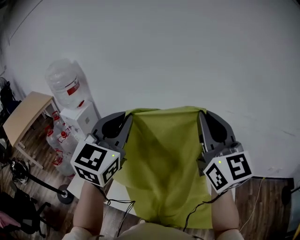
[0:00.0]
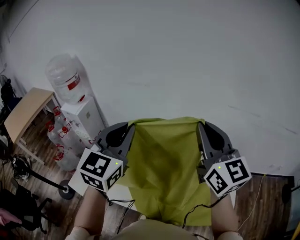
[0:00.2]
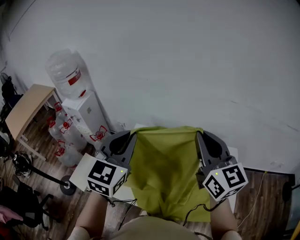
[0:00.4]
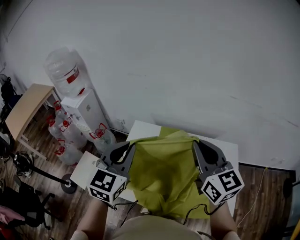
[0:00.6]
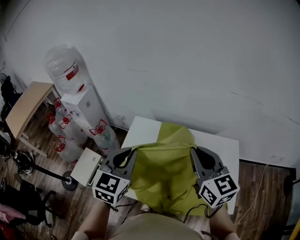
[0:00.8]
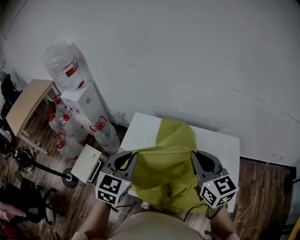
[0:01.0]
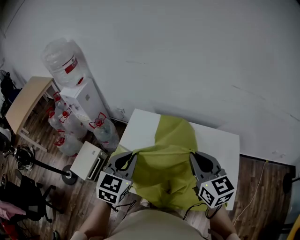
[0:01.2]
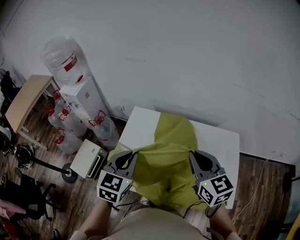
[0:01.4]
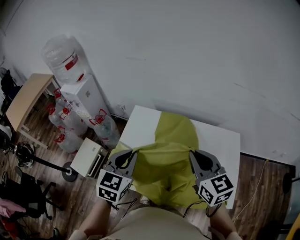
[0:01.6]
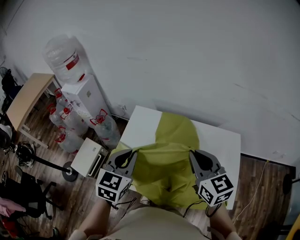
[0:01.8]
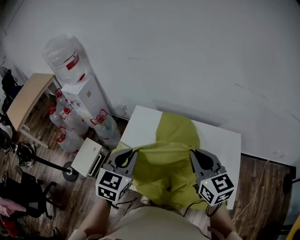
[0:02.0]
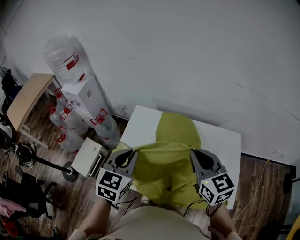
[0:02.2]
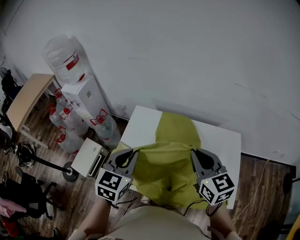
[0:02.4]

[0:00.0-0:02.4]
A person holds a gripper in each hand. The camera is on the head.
0:00.0 to 0:01.2: Both grippers move downward, some 25 cm. The right gripper swivels approximately 30 degrees. The left gripper changes its angle by about 30 degrees.
0:01.2 to 0:02.4: Both grippers stay put.

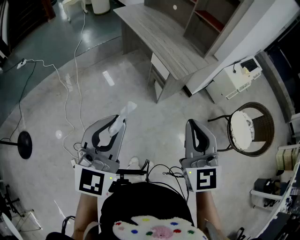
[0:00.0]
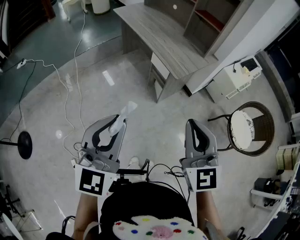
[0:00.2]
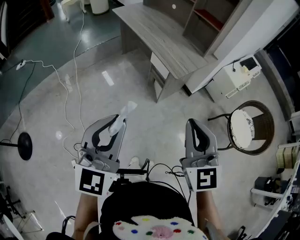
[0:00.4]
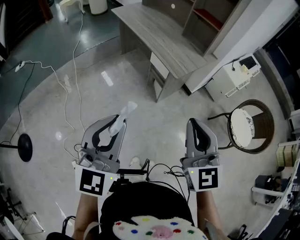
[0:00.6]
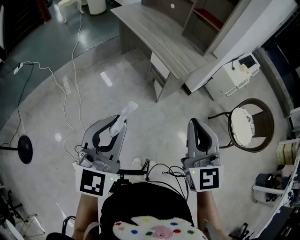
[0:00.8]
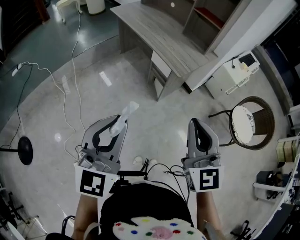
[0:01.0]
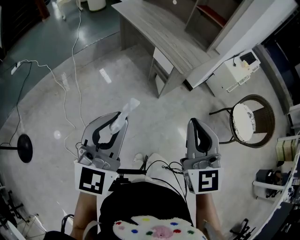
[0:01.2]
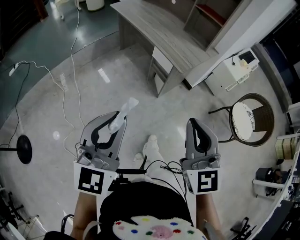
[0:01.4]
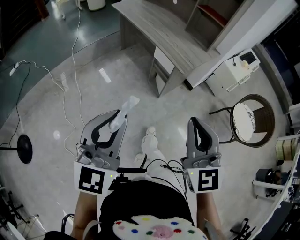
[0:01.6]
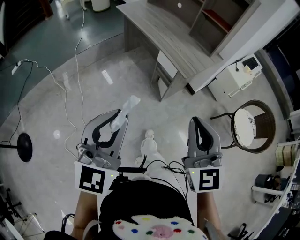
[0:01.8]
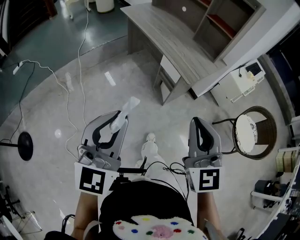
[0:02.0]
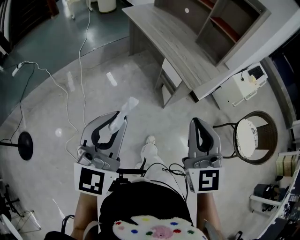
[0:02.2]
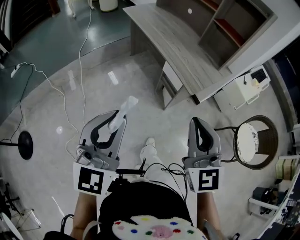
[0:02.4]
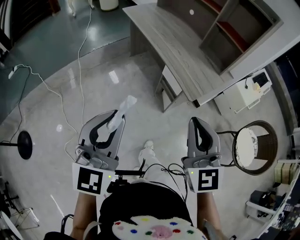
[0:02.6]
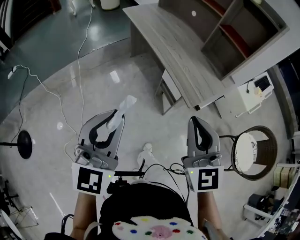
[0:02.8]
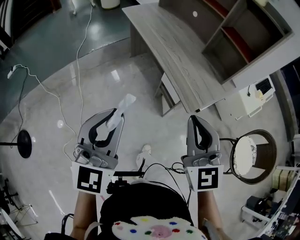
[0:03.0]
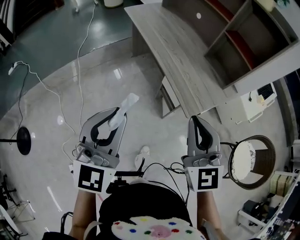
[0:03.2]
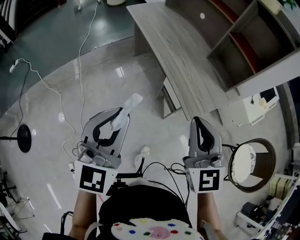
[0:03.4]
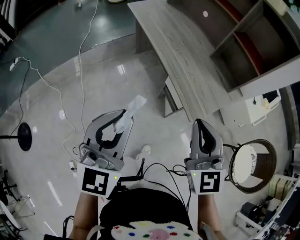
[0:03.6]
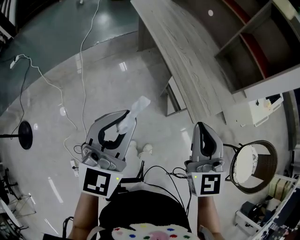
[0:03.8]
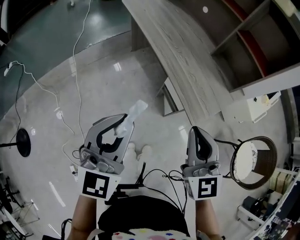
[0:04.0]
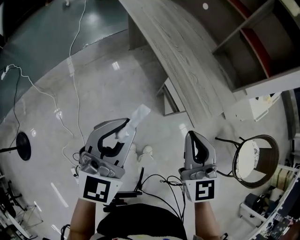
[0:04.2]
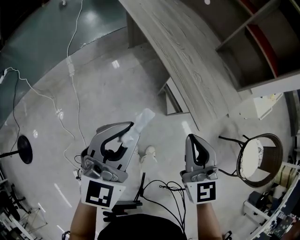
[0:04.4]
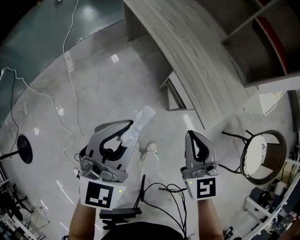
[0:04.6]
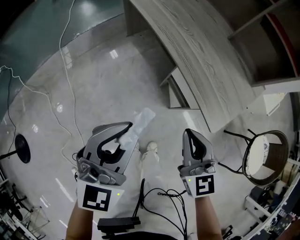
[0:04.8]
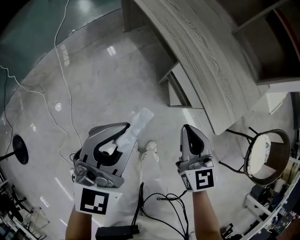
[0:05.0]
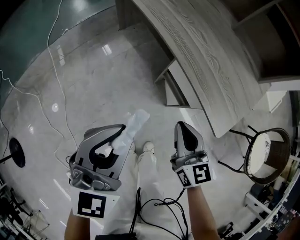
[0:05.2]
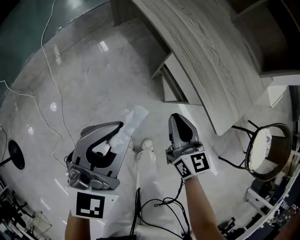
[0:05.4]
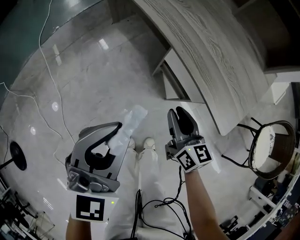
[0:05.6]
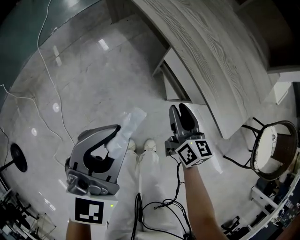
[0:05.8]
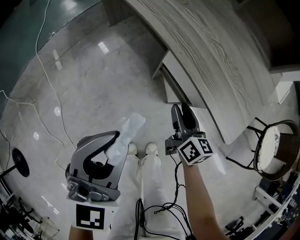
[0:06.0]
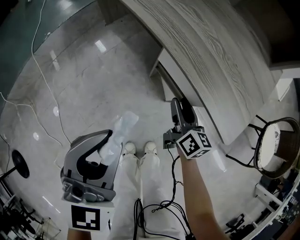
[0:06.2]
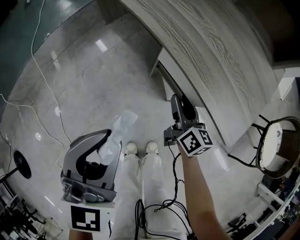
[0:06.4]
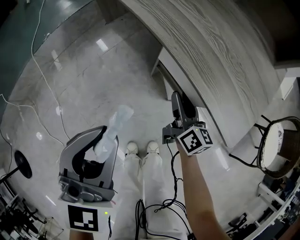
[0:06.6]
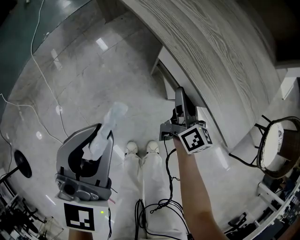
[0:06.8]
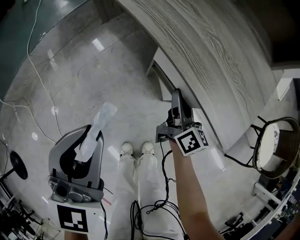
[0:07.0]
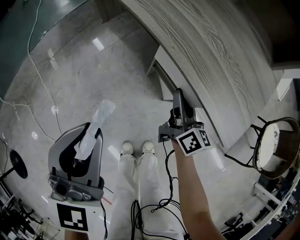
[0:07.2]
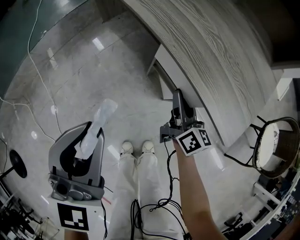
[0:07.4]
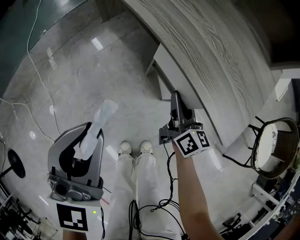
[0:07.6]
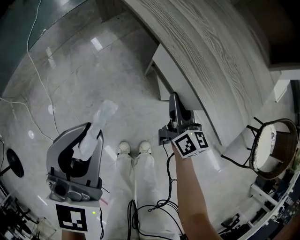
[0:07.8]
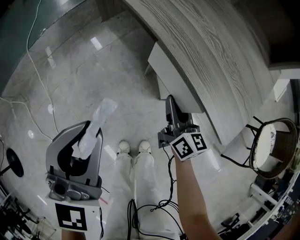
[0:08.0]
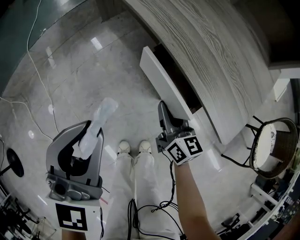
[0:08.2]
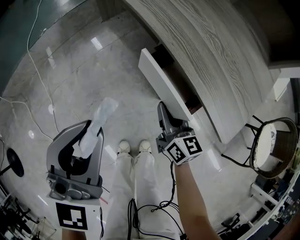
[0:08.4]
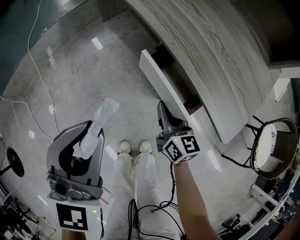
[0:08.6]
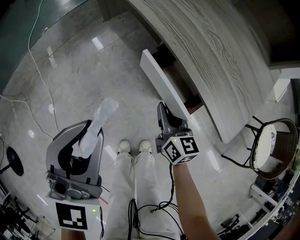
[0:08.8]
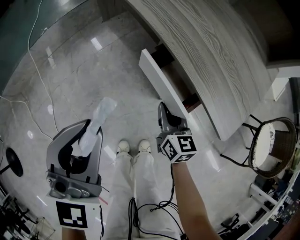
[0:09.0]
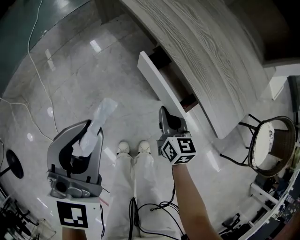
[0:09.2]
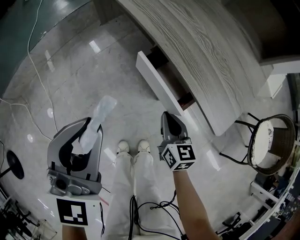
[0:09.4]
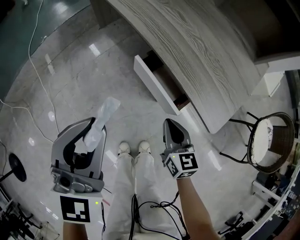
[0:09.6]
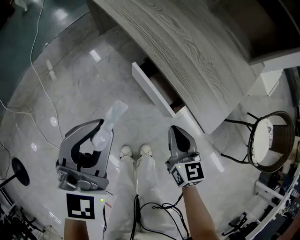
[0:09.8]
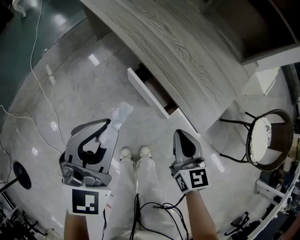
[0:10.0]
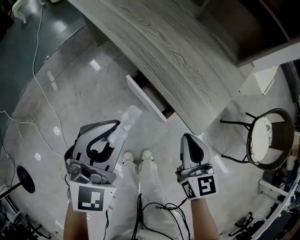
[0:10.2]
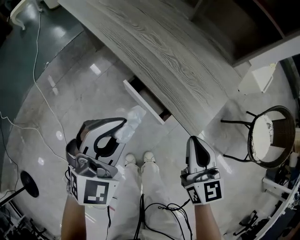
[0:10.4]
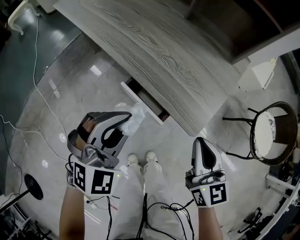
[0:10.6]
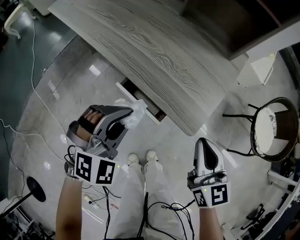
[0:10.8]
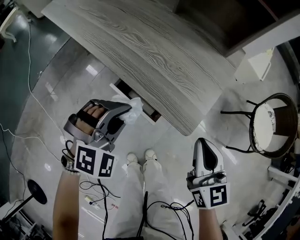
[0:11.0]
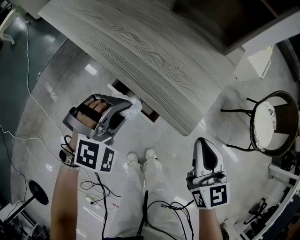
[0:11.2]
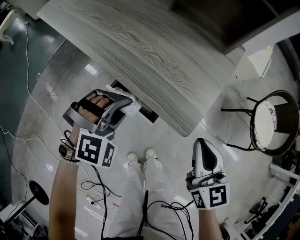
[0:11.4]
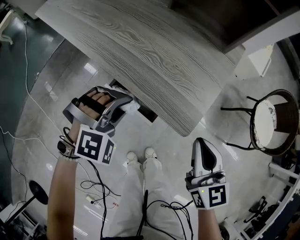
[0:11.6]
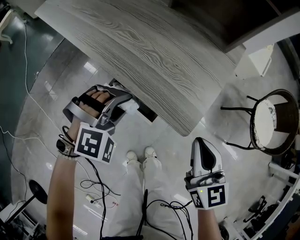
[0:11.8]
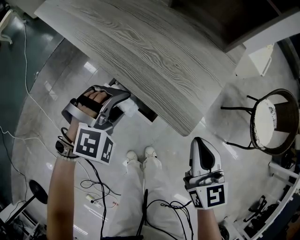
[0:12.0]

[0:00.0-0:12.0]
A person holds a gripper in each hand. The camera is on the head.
0:00.0 to 0:01.6: The grippers both shift to the left by roughly 5 cm.
0:01.6 to 0:03.0: The two grippers go some 25 cm forward.
0:03.0 to 0:04.4: The left gripper shifts about 15 cm forward and downward; the right gripper travels downward and forward by roughly 15 cm.
0:04.4 to 0:06.0: The left gripper heads downward, covering approximately 20 cm. Meanwhile the right gripper is displaced downward by approximately 35 cm, rotates around the line of its fingers by about 40 degrees, clockwise from behind, and opens its fingers.
0:06.0 to 0:07.6: The right gripper closes its fingers.
0:07.6 to 0:09.0: The right gripper shifts some 5 cm backward, and swivels approximately 20 degrees.
0:09.0 to 0:10.4: The left gripper is displaced to the right by about 10 cm, and swivels roughly 30 degrees. The right gripper is displaced upward and to the right by approximately 25 cm.
0:10.4 to 0:12.0: The left gripper moves downward and forward, roughly 15 cm, and swivels approximately 50 degrees.

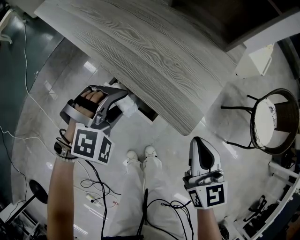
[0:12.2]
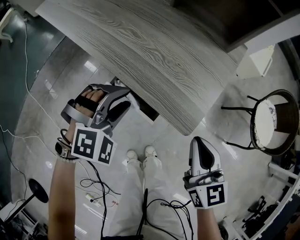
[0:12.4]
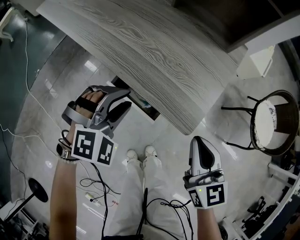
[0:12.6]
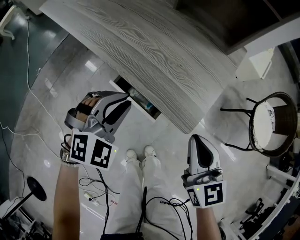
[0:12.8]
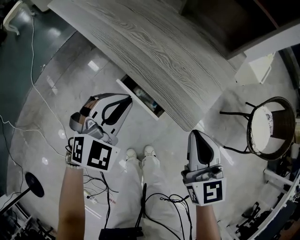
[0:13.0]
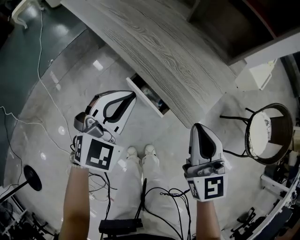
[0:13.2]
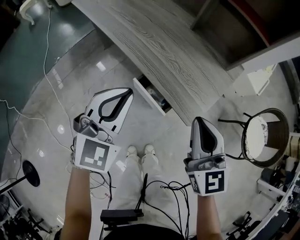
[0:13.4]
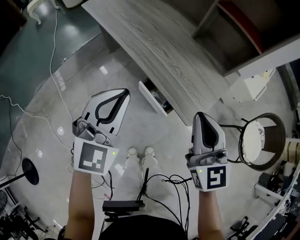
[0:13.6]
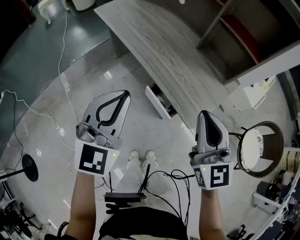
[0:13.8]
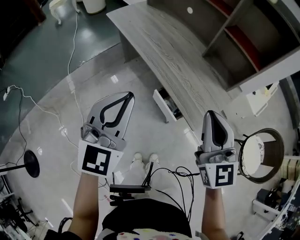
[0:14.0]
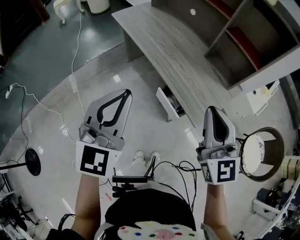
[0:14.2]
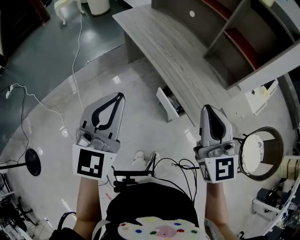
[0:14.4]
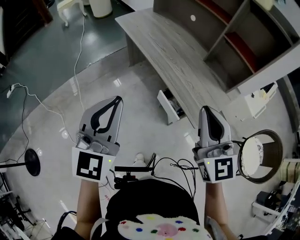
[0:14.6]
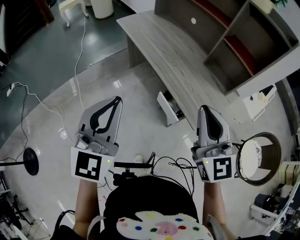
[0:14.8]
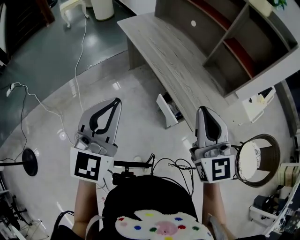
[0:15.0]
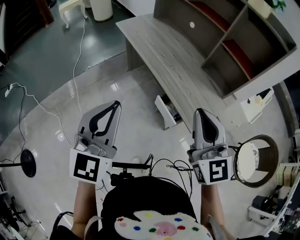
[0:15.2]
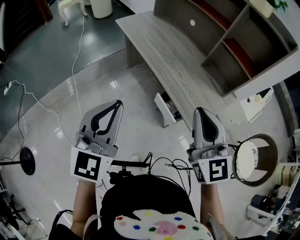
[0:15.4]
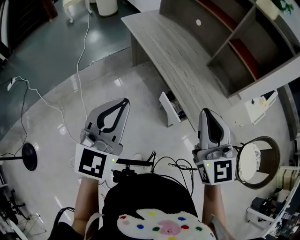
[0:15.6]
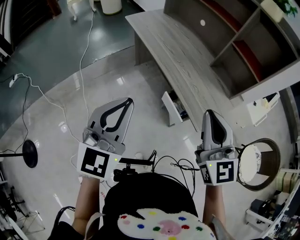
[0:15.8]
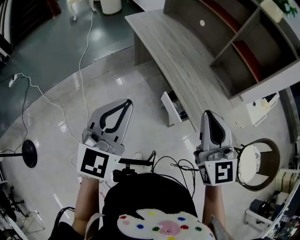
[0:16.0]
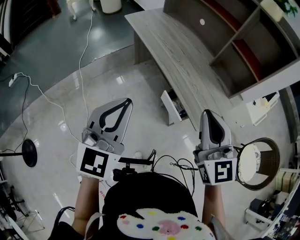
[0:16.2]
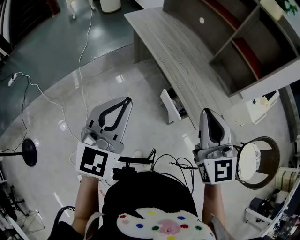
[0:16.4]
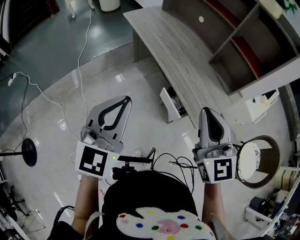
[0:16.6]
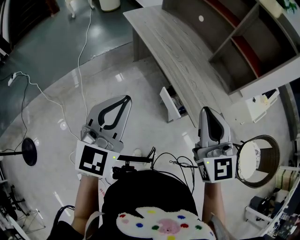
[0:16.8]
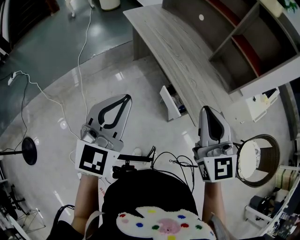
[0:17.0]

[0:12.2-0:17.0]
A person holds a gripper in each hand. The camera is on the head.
0:12.2 to 0:13.8: The left gripper heads upward, covering approximately 30 cm, angles its fingers upward, by approximately 40 degrees, and closes its fingers; the right gripper travels upward and to the left by about 25 cm, and rotates some 30 degrees.
0:13.8 to 0:15.4: The left gripper goes some 15 cm backward, to the left and upward; the right gripper travels upward and to the left by some 10 cm.
0:15.4 to 0:17.0: The grippers stay close to where they were, moving slightly.

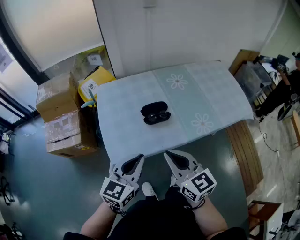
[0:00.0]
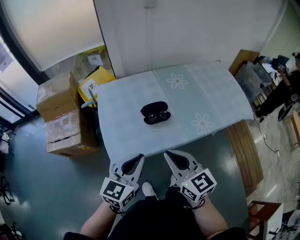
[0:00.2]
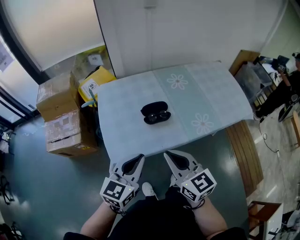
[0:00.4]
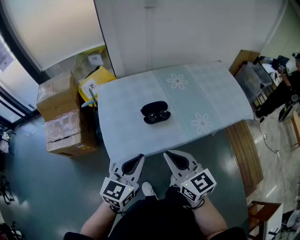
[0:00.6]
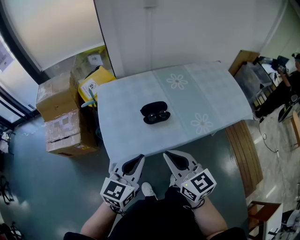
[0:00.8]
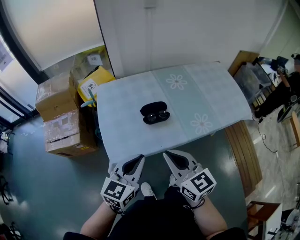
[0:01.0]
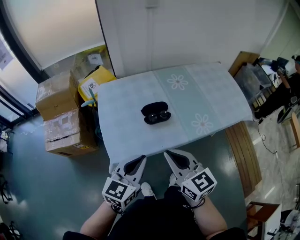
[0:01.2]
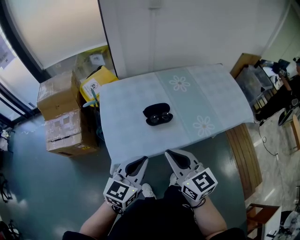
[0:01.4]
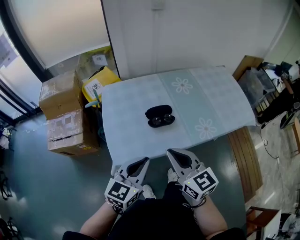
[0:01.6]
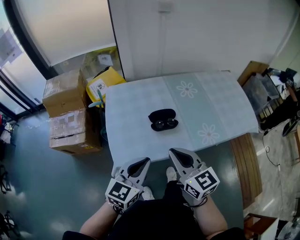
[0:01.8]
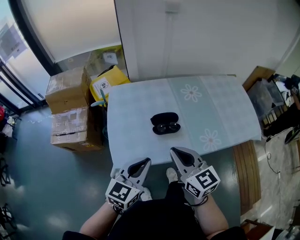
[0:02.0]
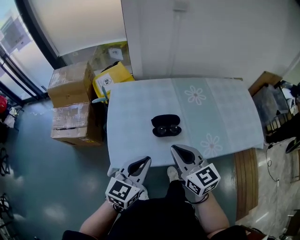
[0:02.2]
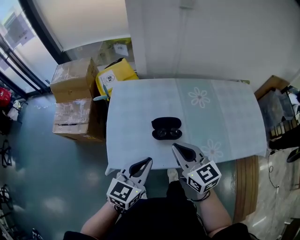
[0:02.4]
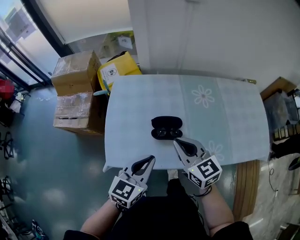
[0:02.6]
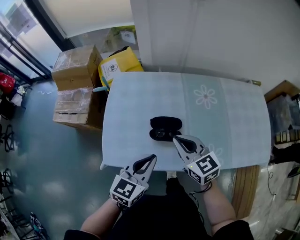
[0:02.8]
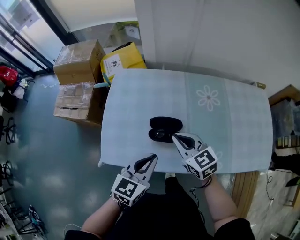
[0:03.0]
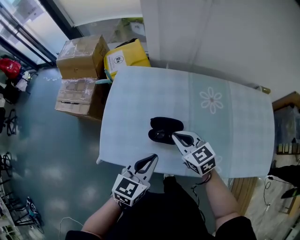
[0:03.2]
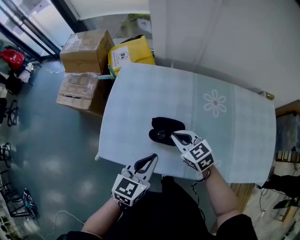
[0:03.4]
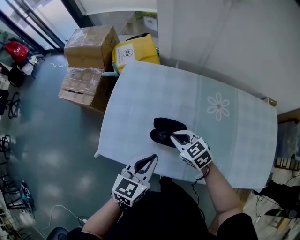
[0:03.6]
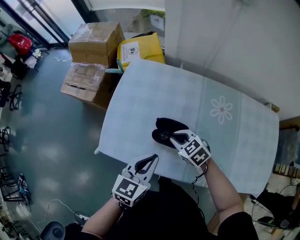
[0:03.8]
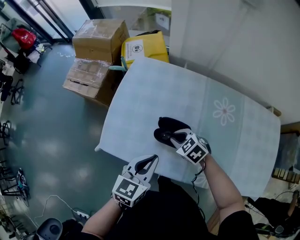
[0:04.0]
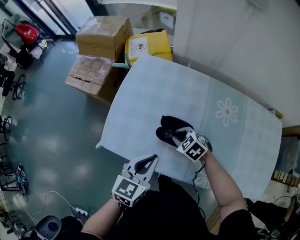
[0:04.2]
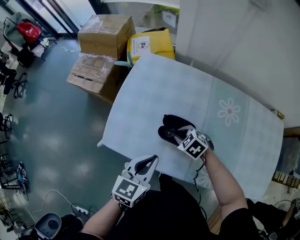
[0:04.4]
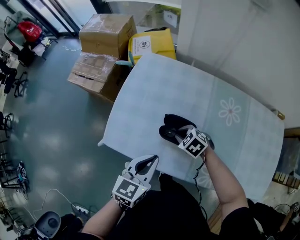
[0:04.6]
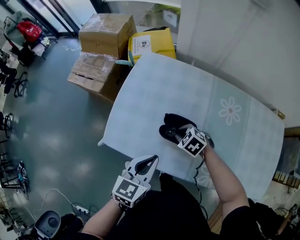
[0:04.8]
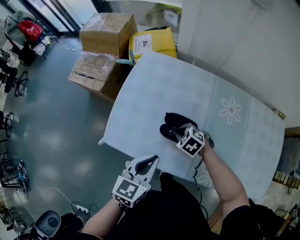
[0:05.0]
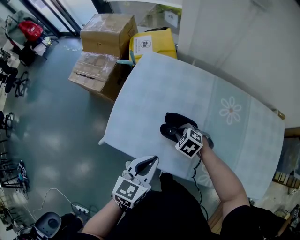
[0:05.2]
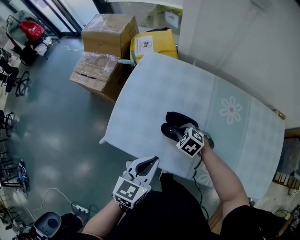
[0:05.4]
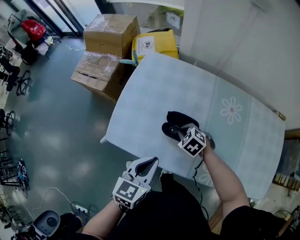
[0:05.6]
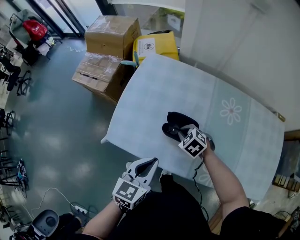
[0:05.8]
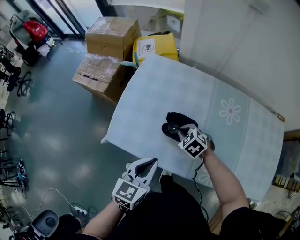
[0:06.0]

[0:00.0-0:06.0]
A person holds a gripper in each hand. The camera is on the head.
0:00.0 to 0:01.6: The grippers stay close to where they were, moving slightly.
0:01.6 to 0:03.0: The right gripper travels forward and downward by about 25 cm, and turns by some 30 degrees; the left gripper is displaced forward, to the right and downward by approximately 20 cm.
0:03.0 to 0:04.4: The right gripper moves downward, about 15 cm, and angles its fingers downward, by approximately 30 degrees.
0:04.4 to 0:06.0: The grippers move only a little.
